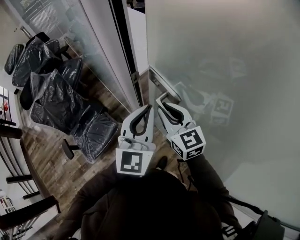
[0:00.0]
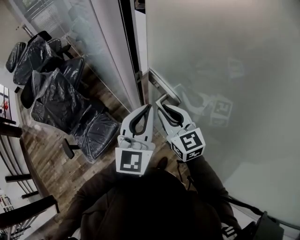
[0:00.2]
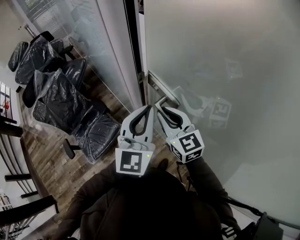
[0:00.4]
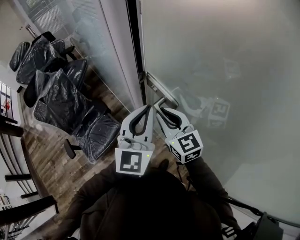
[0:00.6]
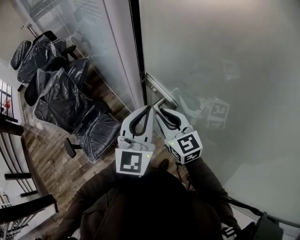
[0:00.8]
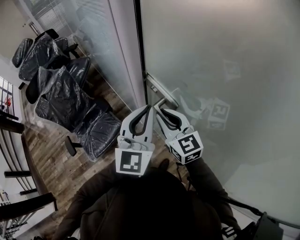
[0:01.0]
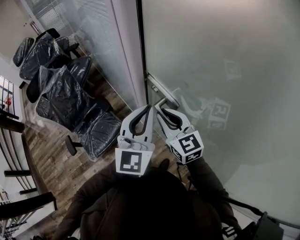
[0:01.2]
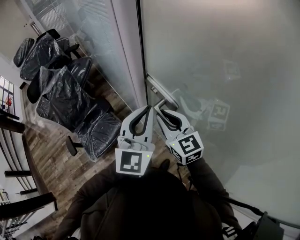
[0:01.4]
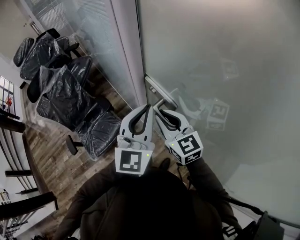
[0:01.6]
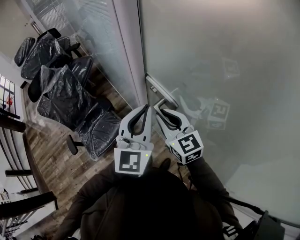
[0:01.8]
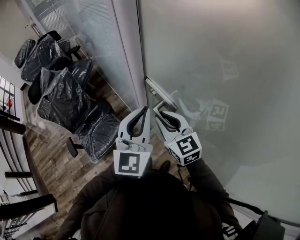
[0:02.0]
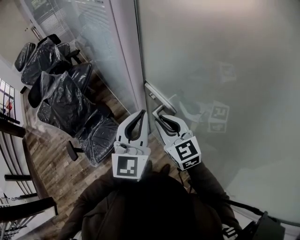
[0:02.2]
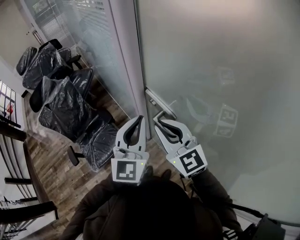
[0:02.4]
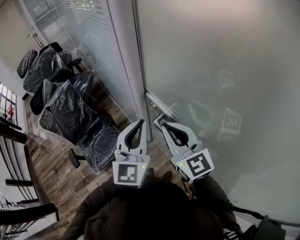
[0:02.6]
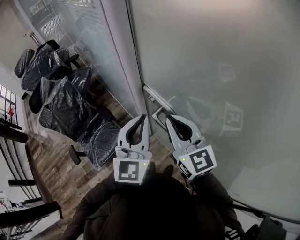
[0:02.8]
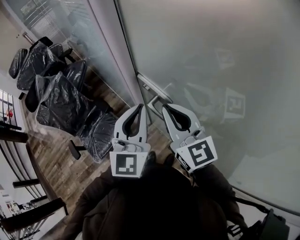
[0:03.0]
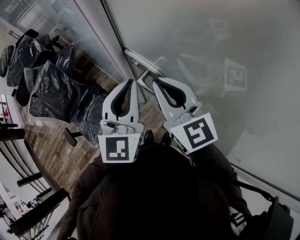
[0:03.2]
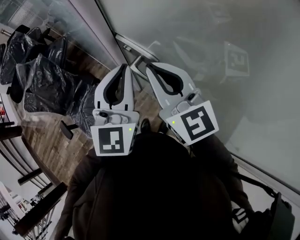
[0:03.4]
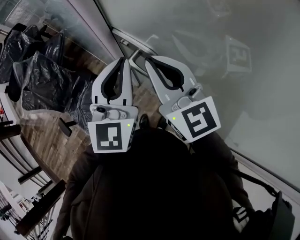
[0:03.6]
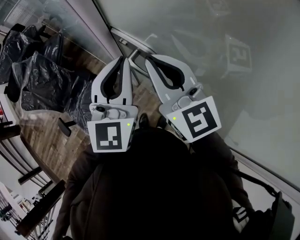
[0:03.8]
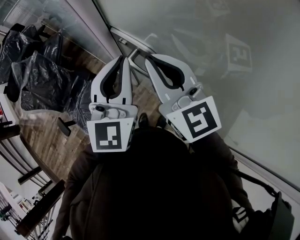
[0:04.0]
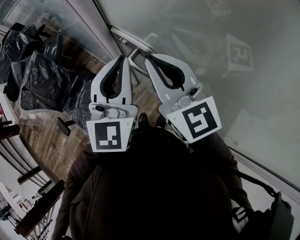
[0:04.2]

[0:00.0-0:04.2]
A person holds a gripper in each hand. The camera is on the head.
0:00.0 to 0:01.4: The right gripper ends up roughly 5 cm from where it was. Meanwhile the left gripper shifts by roughly 5 cm.
0:01.4 to 0:02.8: The right gripper is displaced upward by approximately 10 cm.
0:02.8 to 0:04.2: There are only small adjustments of the grippers.

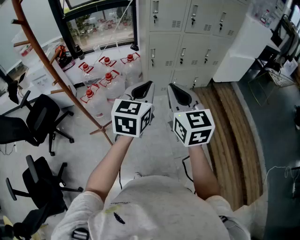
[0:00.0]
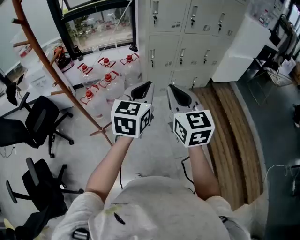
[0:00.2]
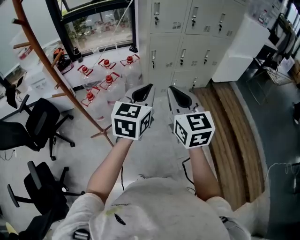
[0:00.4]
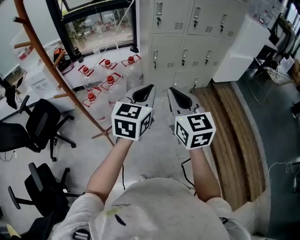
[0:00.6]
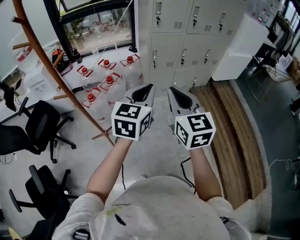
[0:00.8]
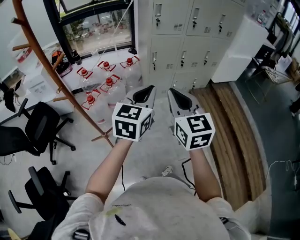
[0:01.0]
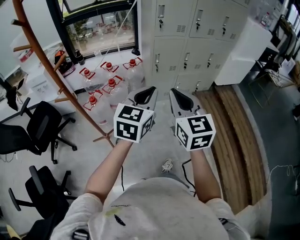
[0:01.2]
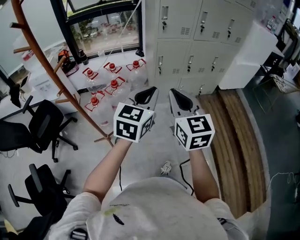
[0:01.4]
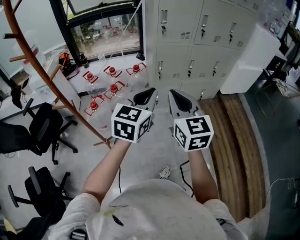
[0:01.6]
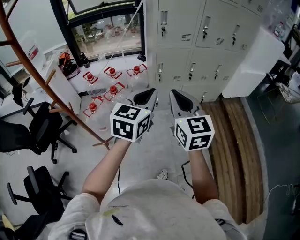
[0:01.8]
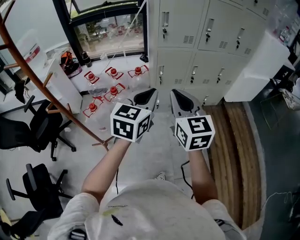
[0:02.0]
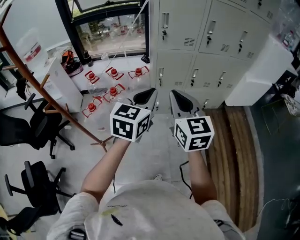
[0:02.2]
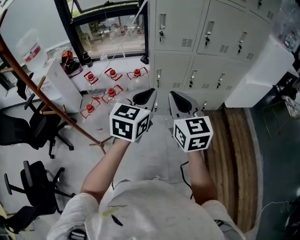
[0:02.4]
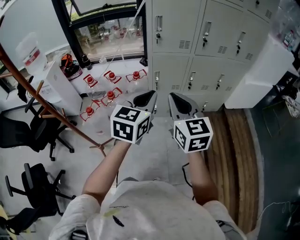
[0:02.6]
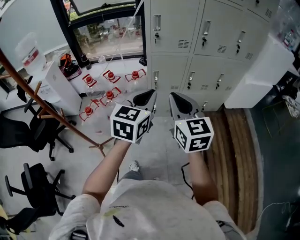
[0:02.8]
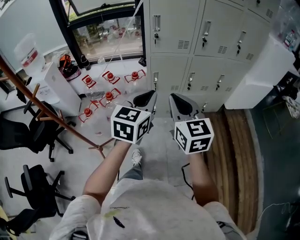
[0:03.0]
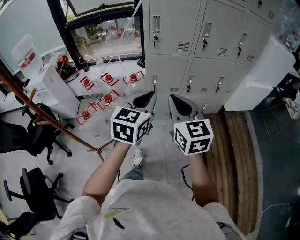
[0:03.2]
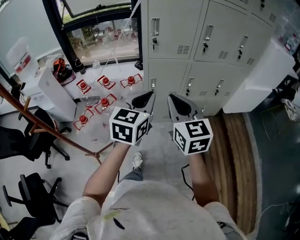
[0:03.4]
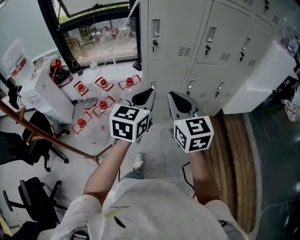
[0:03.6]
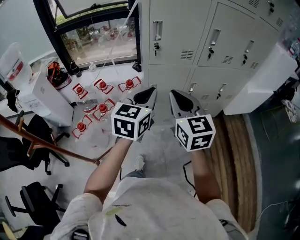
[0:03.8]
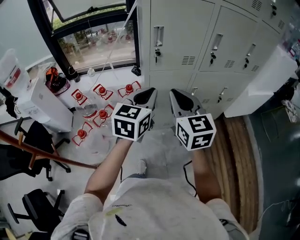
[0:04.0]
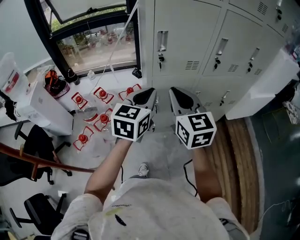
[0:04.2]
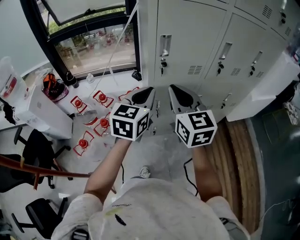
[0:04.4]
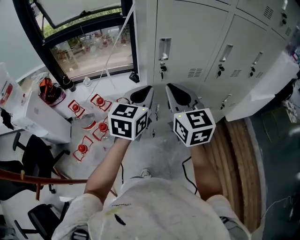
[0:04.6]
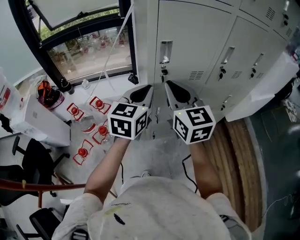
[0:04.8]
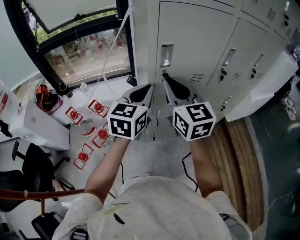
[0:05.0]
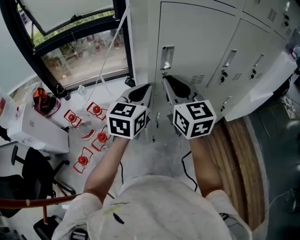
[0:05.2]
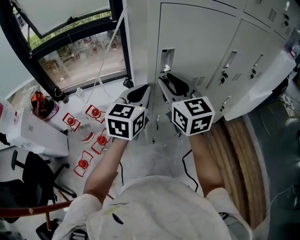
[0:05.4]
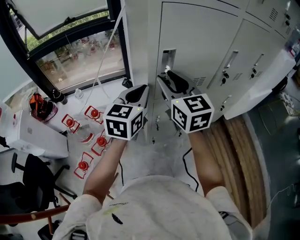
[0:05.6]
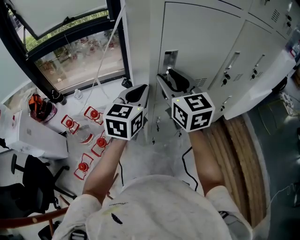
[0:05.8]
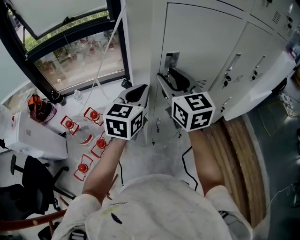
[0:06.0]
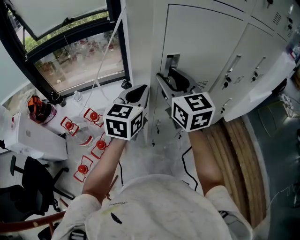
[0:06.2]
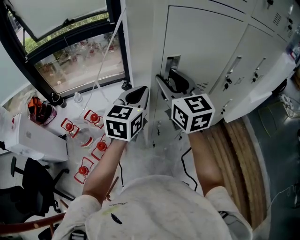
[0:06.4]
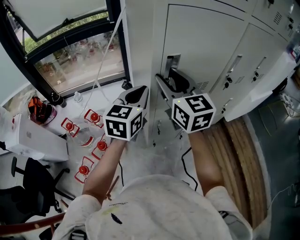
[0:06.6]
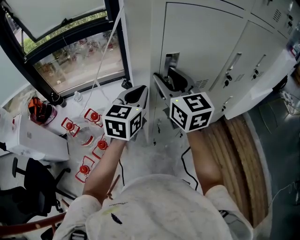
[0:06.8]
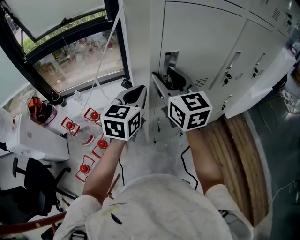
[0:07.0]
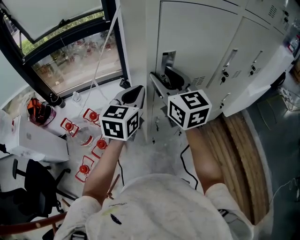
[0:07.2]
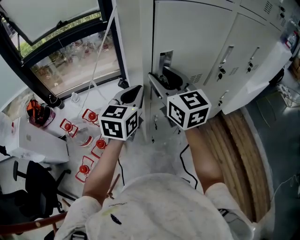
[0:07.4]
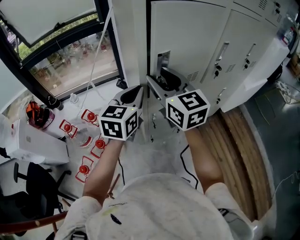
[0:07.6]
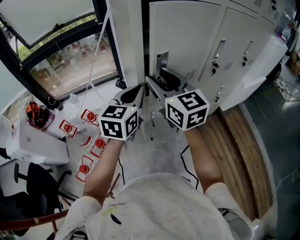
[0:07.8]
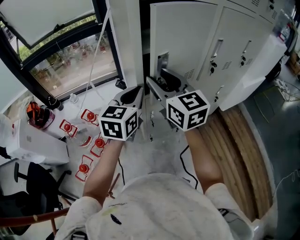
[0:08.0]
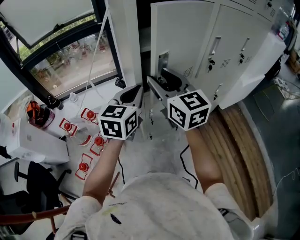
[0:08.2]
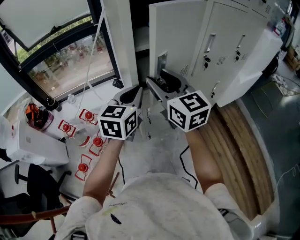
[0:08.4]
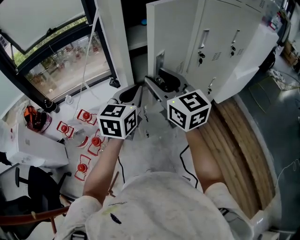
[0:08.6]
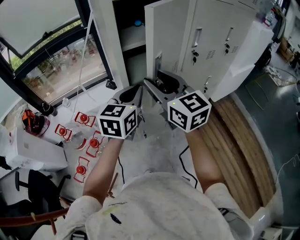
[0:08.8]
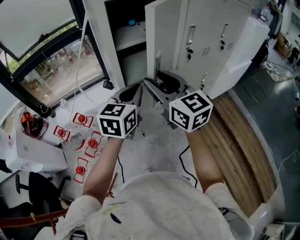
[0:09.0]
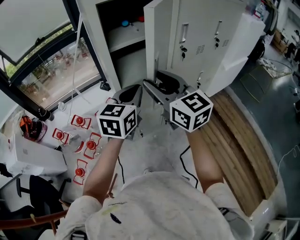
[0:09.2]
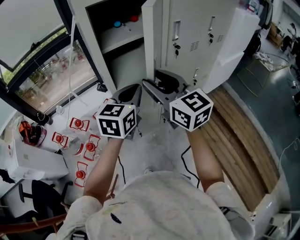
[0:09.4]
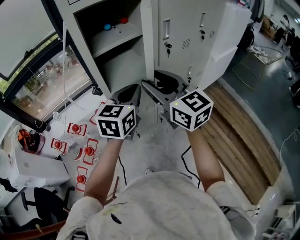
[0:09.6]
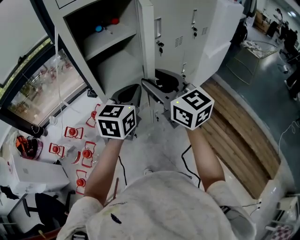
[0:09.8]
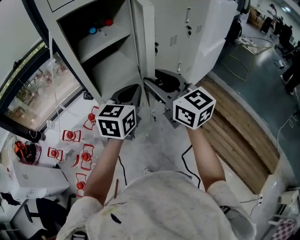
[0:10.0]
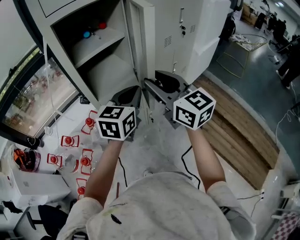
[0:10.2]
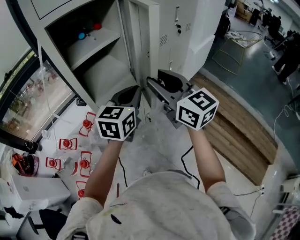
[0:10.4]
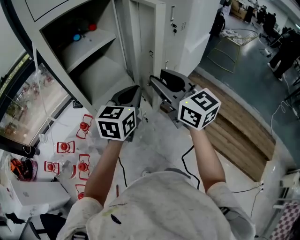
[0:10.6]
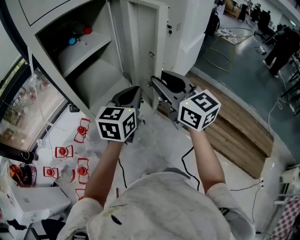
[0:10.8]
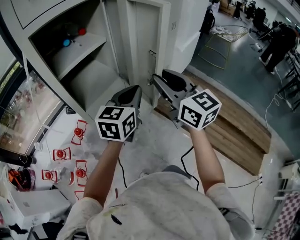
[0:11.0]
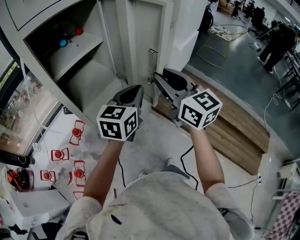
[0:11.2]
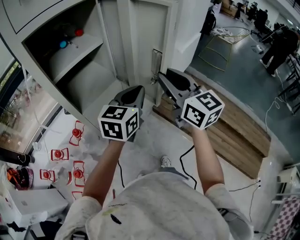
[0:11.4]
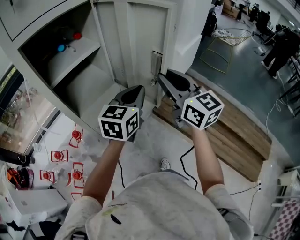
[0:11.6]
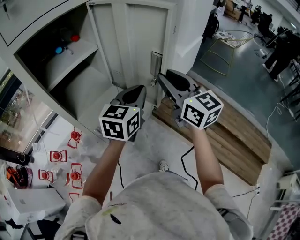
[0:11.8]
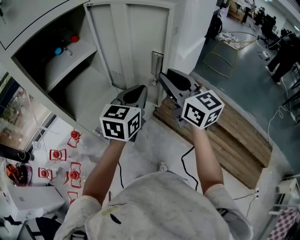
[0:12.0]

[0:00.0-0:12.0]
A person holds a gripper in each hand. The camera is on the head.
0:00.0 to 0:01.6: The two grippers go about 10 cm forward.
0:01.6 to 0:03.0: Both grippers travel together forward and to the right, roughly 15 cm.
0:03.0 to 0:04.4: Both grippers travel together forward, approximately 25 cm.
0:04.4 to 0:06.0: The grippers both shift forward by roughly 15 cm. The right gripper opens its fingers.
0:06.0 to 0:07.6: There are only small adjustments of the grippers.
0:07.6 to 0:09.0: The left gripper moves to the right and backward, about 10 cm; the right gripper shifts roughly 10 cm backward and to the right.
0:09.0 to 0:10.4: The two grippers go about 15 cm to the right.
0:10.4 to 0:12.0: The two grippers go roughly 15 cm to the right and forward.

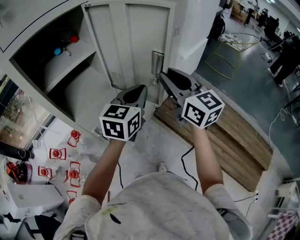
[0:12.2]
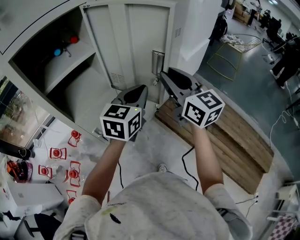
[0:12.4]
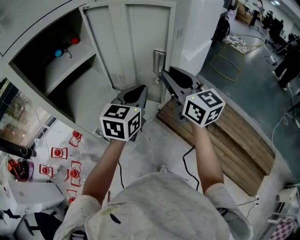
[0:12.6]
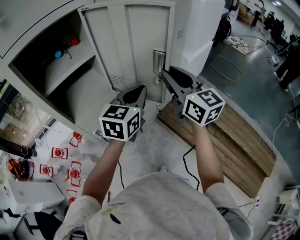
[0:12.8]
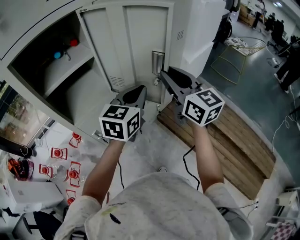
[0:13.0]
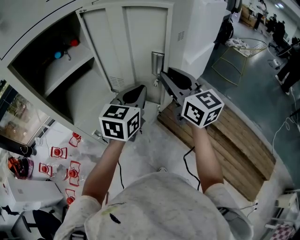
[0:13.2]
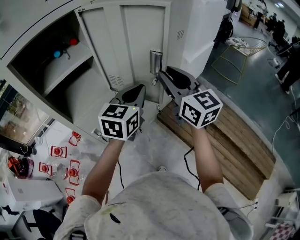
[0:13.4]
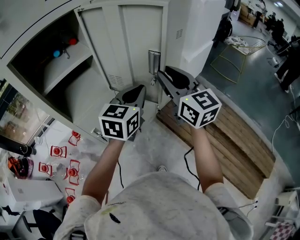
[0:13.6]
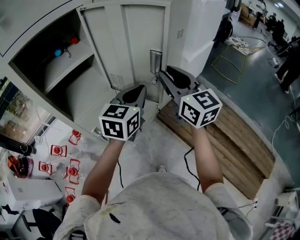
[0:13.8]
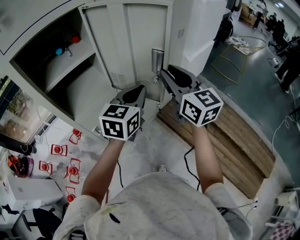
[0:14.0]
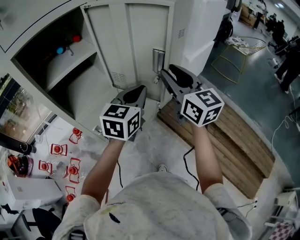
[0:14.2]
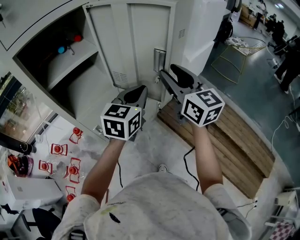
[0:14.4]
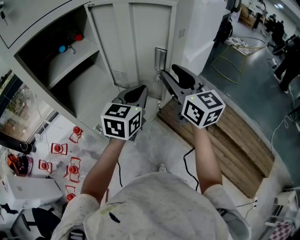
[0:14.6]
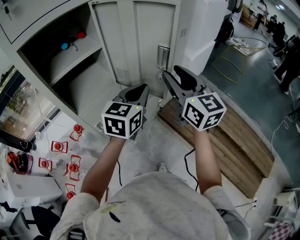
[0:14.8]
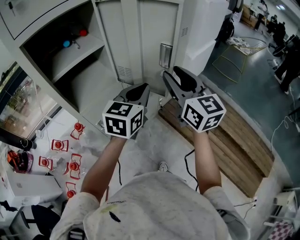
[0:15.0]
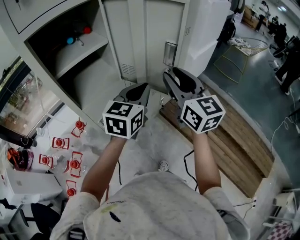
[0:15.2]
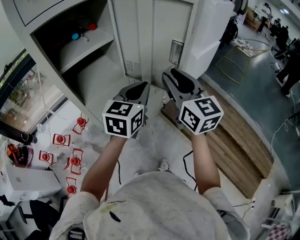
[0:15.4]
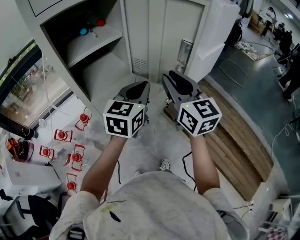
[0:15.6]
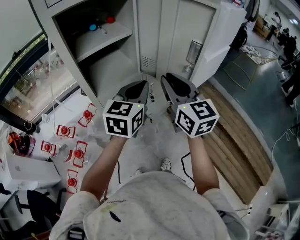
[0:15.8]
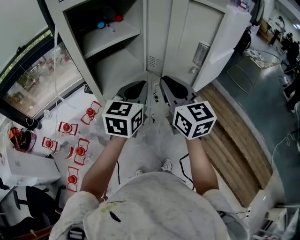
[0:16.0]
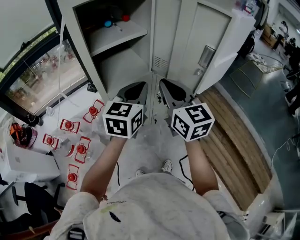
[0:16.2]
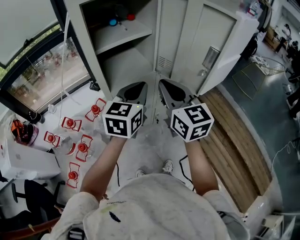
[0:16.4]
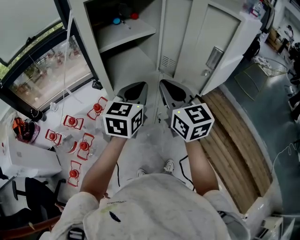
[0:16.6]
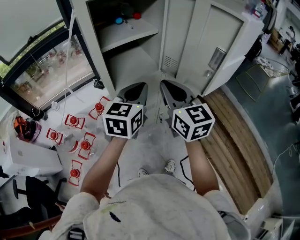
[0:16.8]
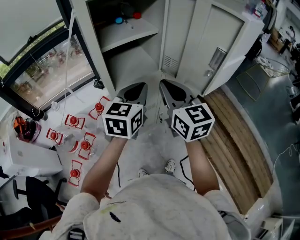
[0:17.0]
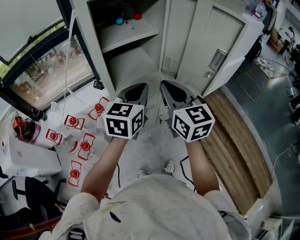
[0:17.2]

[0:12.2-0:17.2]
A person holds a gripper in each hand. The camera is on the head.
0:12.2 to 0:13.8: The grippers stay close to where they were, moving slightly.
0:13.8 to 0:15.6: The two grippers go about 10 cm to the left and backward.
0:15.6 to 0:17.2: The grippers both shift to the left by about 15 cm. The right gripper closes up.

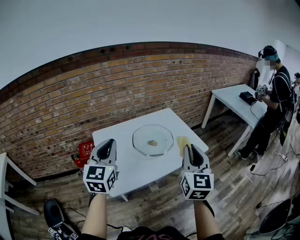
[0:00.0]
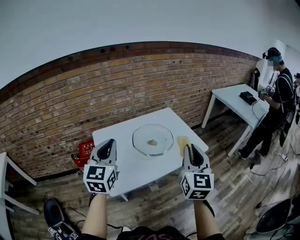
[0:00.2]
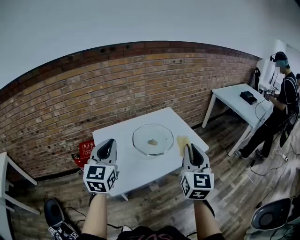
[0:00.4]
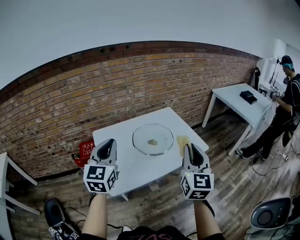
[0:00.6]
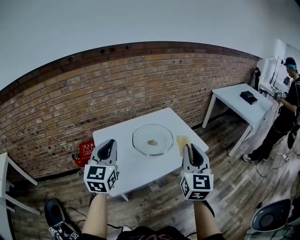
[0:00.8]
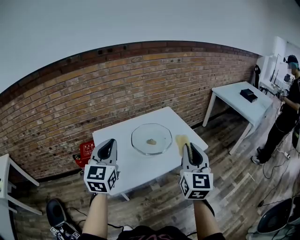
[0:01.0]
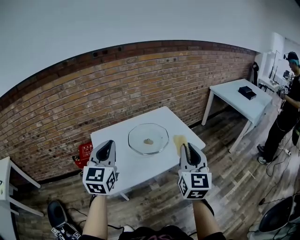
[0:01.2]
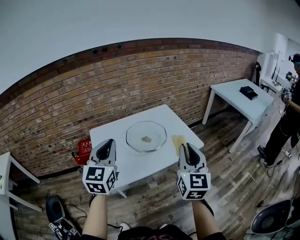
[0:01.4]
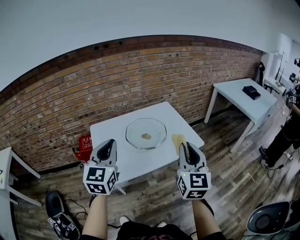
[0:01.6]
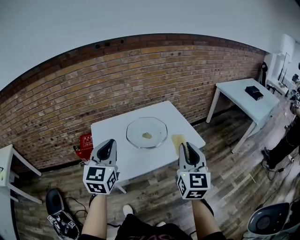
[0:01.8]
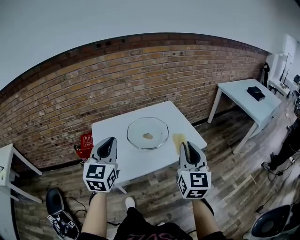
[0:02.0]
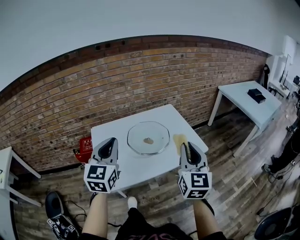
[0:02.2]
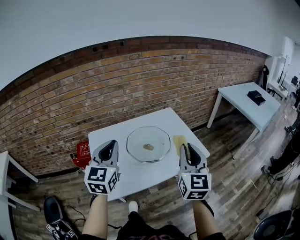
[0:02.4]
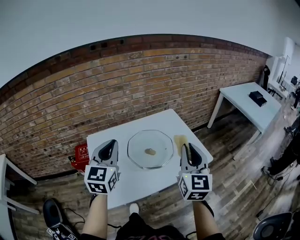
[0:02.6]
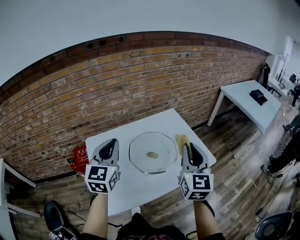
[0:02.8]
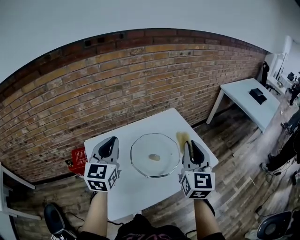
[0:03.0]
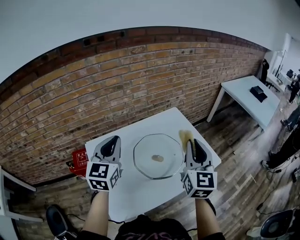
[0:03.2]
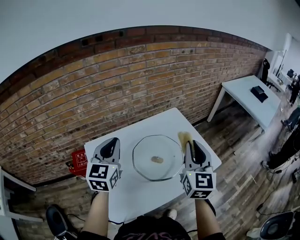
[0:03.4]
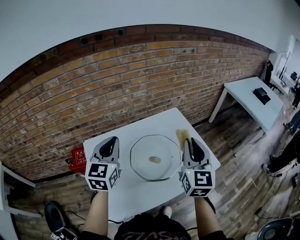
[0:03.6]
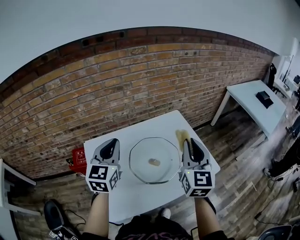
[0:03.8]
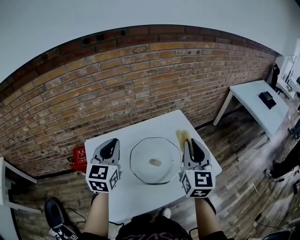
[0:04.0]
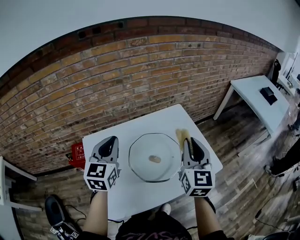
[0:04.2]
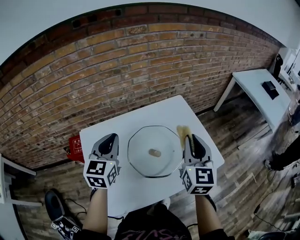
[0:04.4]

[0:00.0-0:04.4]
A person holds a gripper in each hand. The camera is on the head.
0:00.0 to 0:01.4: The two grippers go about 5 cm to the right.
0:01.4 to 0:03.0: The grippers both shift forward by some 25 cm.
0:03.0 to 0:04.4: The left gripper heads downward and forward, covering some 10 cm; the right gripper is displaced forward and downward by approximately 10 cm.
